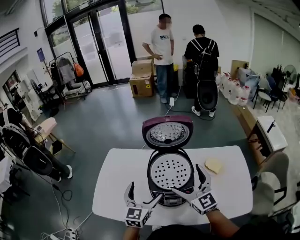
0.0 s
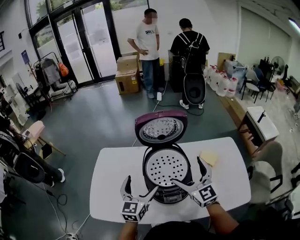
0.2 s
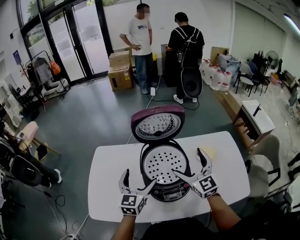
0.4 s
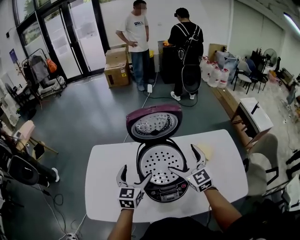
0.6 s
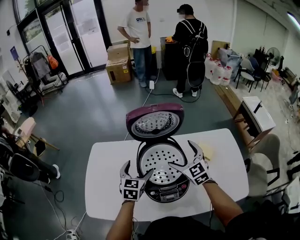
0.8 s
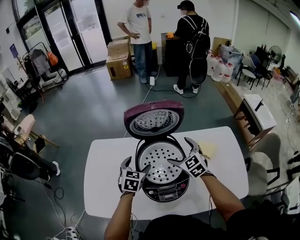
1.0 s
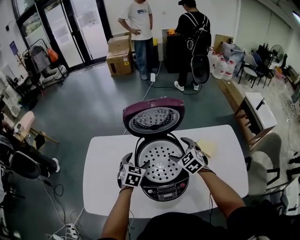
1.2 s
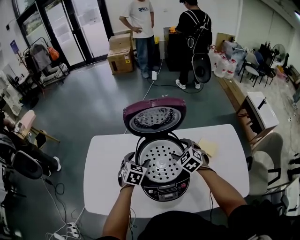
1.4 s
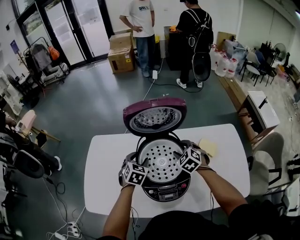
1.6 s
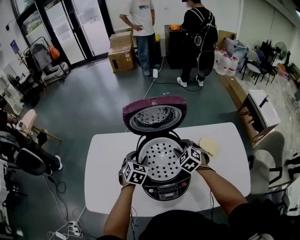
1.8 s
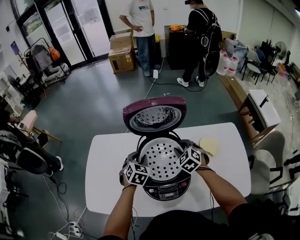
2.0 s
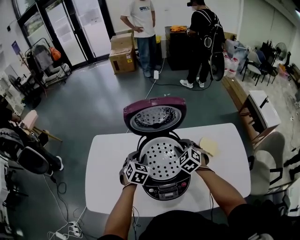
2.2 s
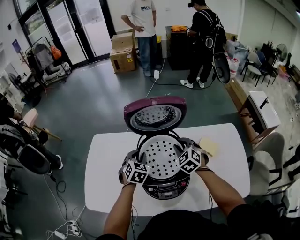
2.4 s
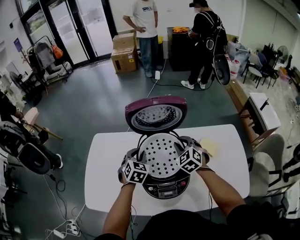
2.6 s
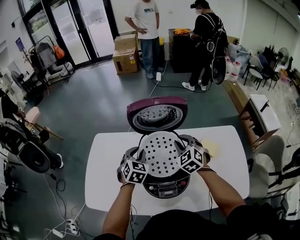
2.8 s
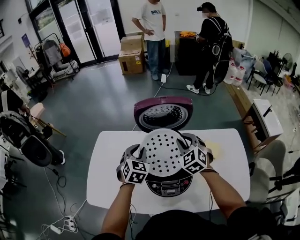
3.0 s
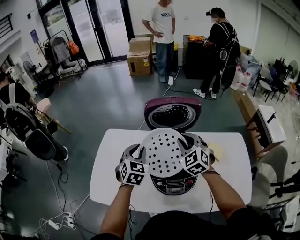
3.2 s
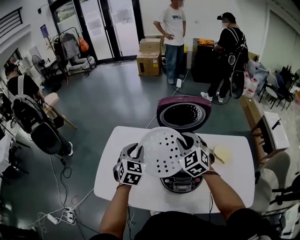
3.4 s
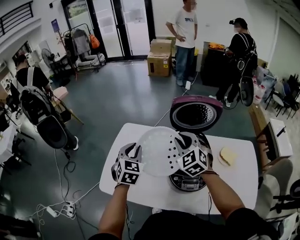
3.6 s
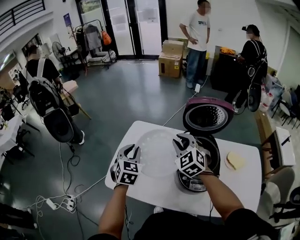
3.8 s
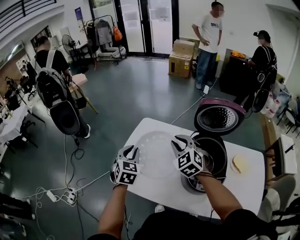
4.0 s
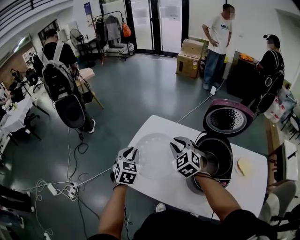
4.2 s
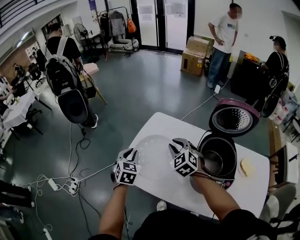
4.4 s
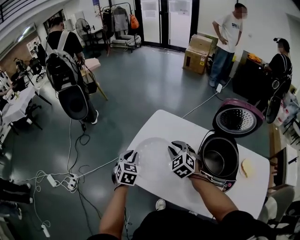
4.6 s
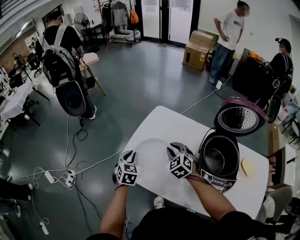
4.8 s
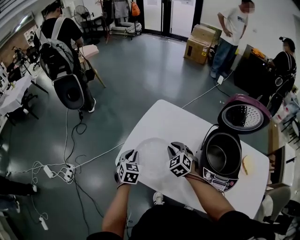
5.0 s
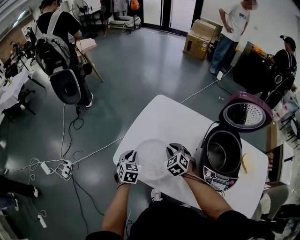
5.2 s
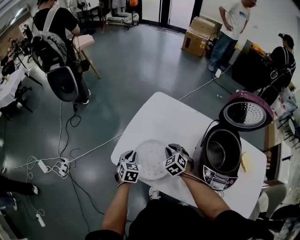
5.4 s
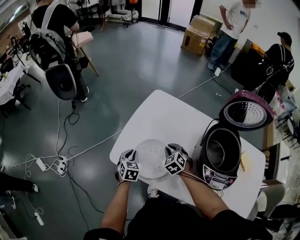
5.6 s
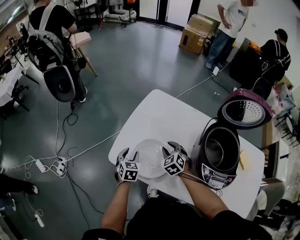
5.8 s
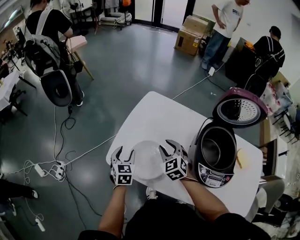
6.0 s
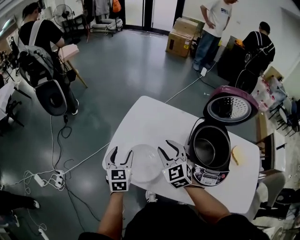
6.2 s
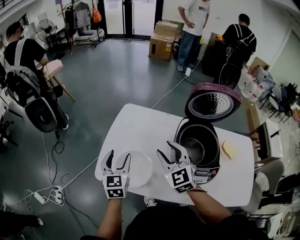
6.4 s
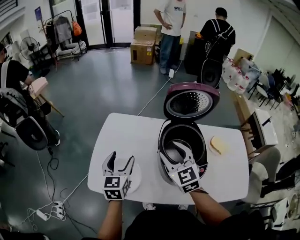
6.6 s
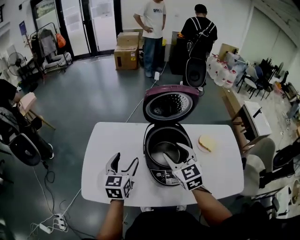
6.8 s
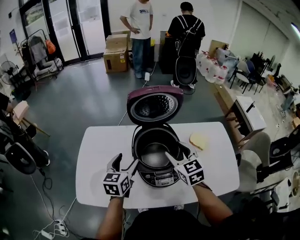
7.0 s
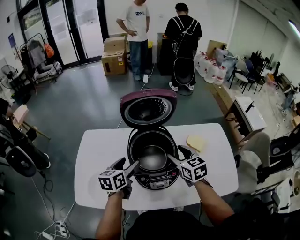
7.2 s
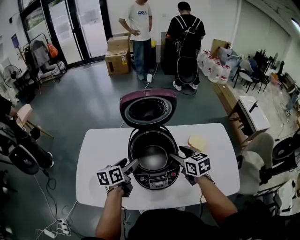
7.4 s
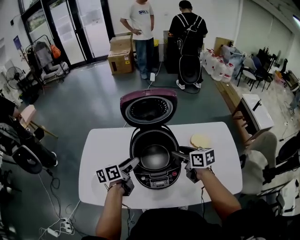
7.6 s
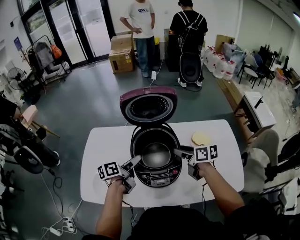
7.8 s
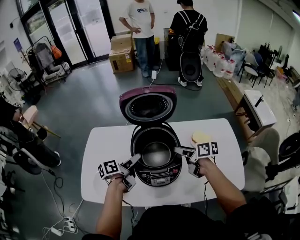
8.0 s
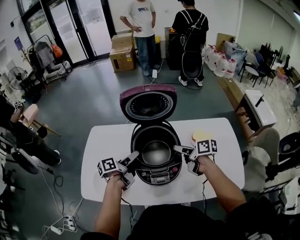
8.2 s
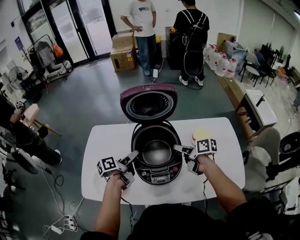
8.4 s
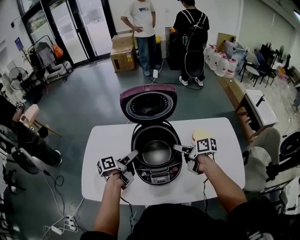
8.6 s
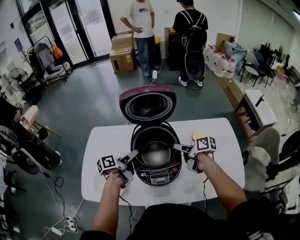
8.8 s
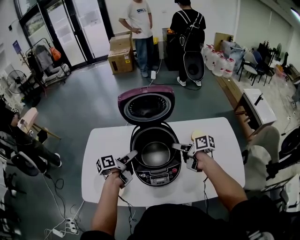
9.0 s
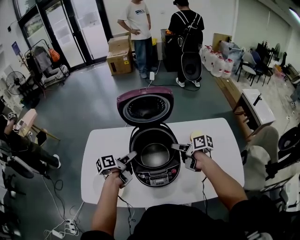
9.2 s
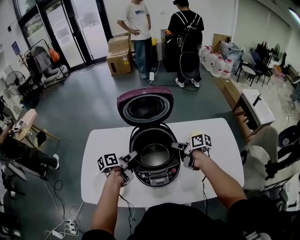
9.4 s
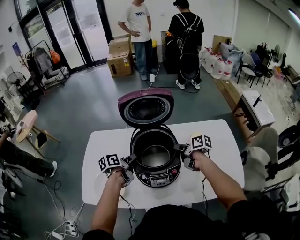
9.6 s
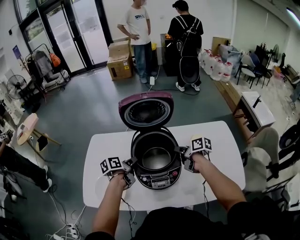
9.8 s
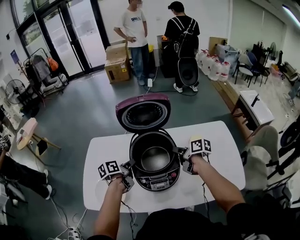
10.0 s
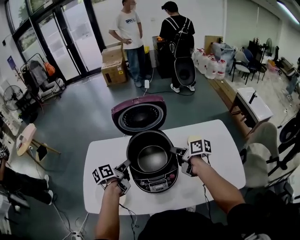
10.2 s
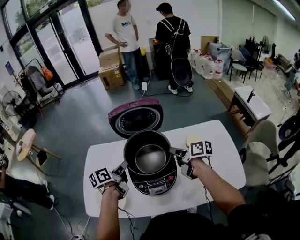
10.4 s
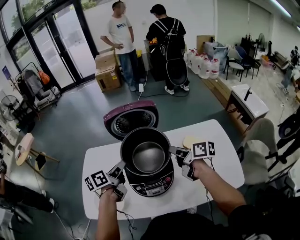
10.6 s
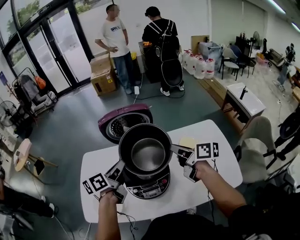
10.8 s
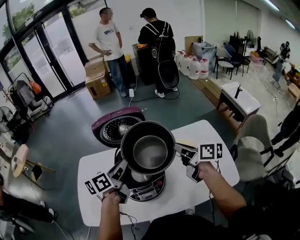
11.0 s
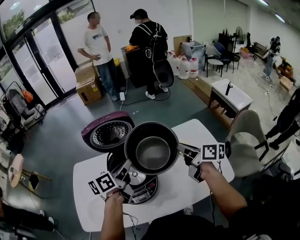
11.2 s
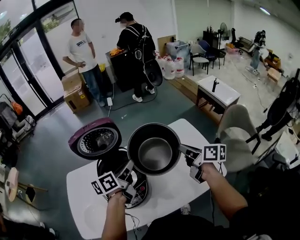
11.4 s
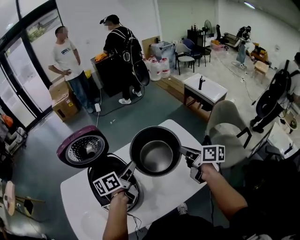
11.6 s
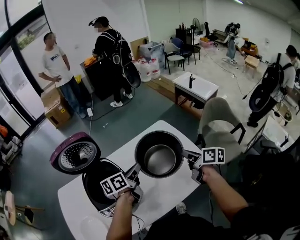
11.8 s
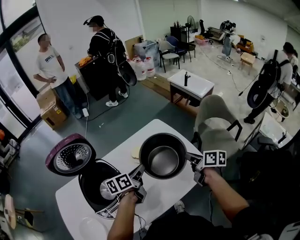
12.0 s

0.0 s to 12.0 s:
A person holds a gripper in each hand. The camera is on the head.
0.0 to 1.6 s: The left gripper shifts some 20 cm forward and downward, points its fingers approximately 30 degrees further downward, and closes its fingers. The right gripper travels downward and forward by some 25 cm, tips its fingers downward by approximately 50 degrees, and closes its fingers.
1.6 to 3.0 s: Both grippers travel together upward, approximately 10 cm.
3.0 to 4.4 s: The right gripper reaches approximately 5 cm upward, then returns, and turns by roughly 30 degrees; the left gripper travels upward and back again, approximately 5 cm each way, and turns by some 30 degrees.
4.4 to 6.0 s: The grippers both shift downward by approximately 15 cm.
6.0 to 7.6 s: The left gripper moves about 40 cm, and swivels approximately 60 degrees. The right gripper shifts by approximately 40 cm, and twists about 60 degrees clockwise, seen from behind.
7.6 to 9.0 s: The left gripper changes its angle by approximately 20 degrees. The right gripper turns by approximately 30 degrees.
9.0 to 10.4 s: Both grippers move upward, roughly 5 cm. The left gripper closes. The right gripper closes its fingers.
10.4 to 12.0 s: The left gripper reaches some 10 cm upward, then returns, and changes its angle by some 30 degrees. The right gripper travels upward and back again, about 10 cm each way, and changes its angle by about 40 degrees.

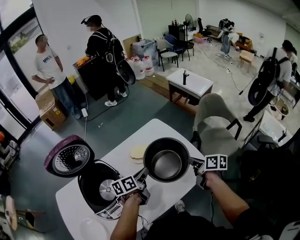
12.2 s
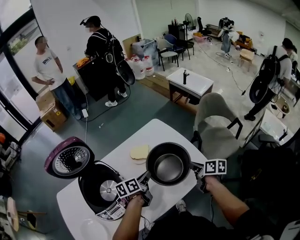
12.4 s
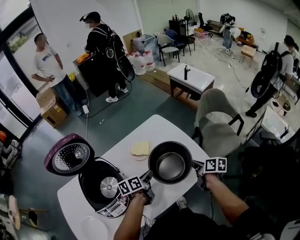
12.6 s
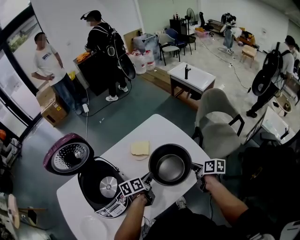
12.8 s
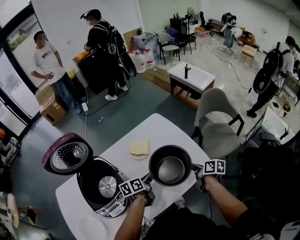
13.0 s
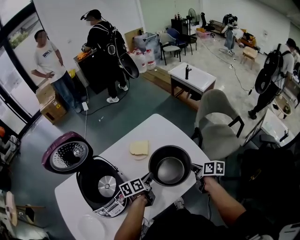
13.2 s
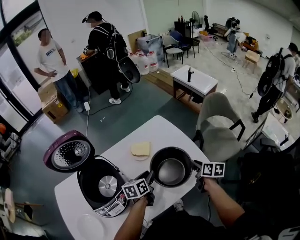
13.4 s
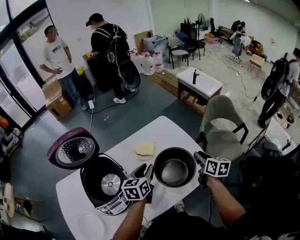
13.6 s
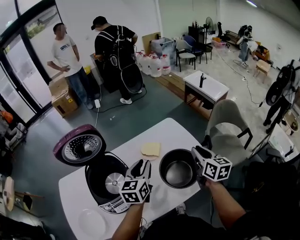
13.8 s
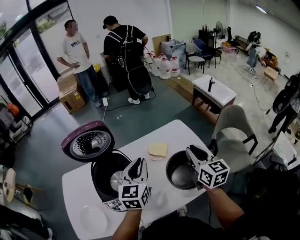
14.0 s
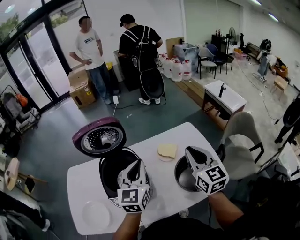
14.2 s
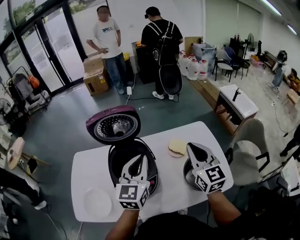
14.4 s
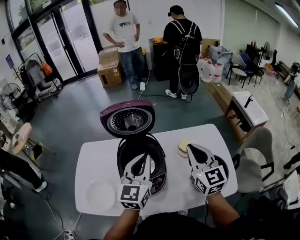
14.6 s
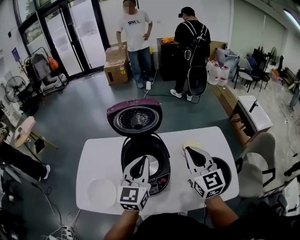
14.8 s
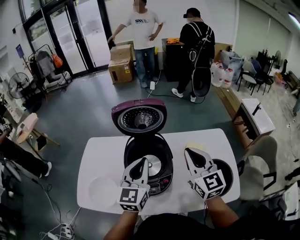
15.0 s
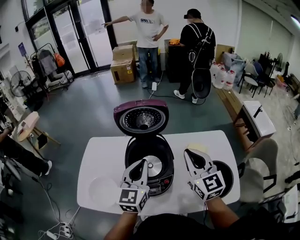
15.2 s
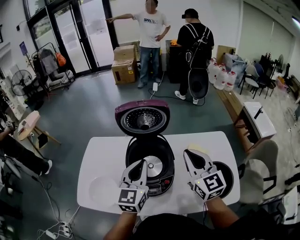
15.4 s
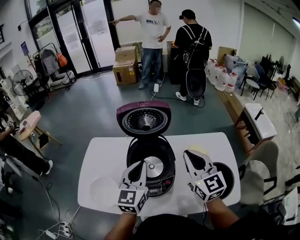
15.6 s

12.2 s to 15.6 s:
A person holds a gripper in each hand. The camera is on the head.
12.2 to 13.8 s: The grippers both shift upward by some 10 cm. The right gripper swivels about 30 degrees; the left gripper changes its angle by about 40 degrees.
13.8 to 15.6 s: The right gripper changes place by about 35 cm, and turns by about 50 degrees, while the left gripper moves roughly 25 cm, and rotates roughly 30 degrees.

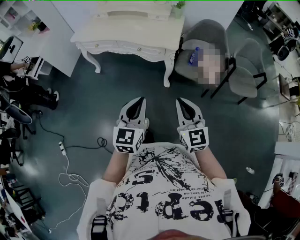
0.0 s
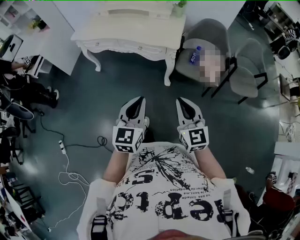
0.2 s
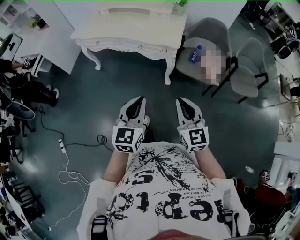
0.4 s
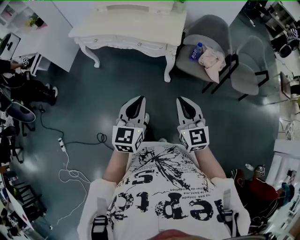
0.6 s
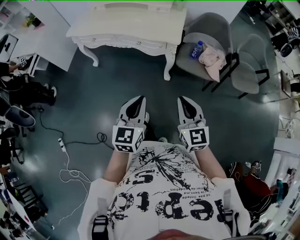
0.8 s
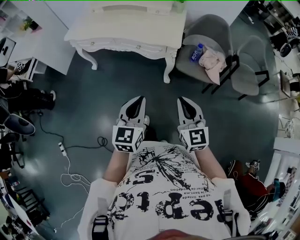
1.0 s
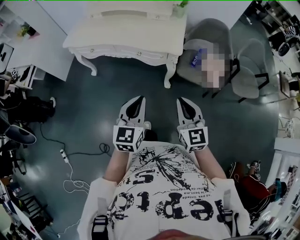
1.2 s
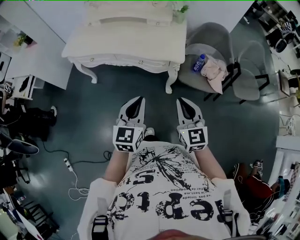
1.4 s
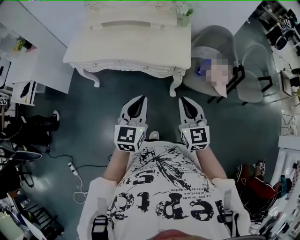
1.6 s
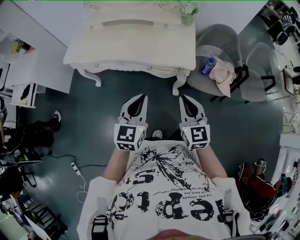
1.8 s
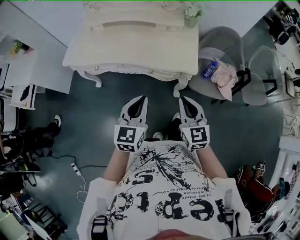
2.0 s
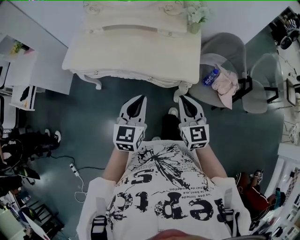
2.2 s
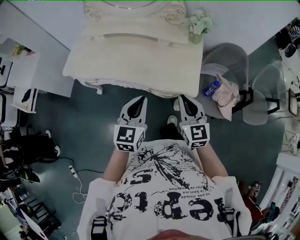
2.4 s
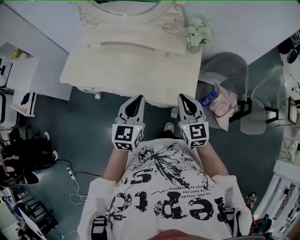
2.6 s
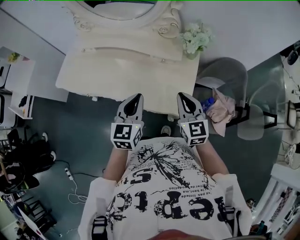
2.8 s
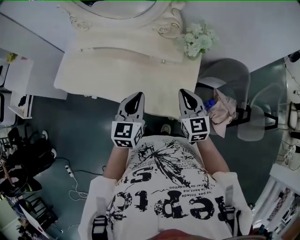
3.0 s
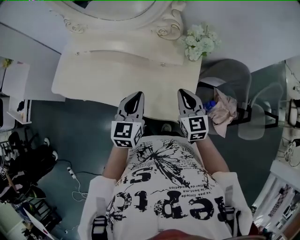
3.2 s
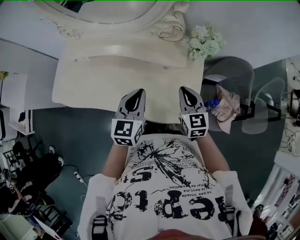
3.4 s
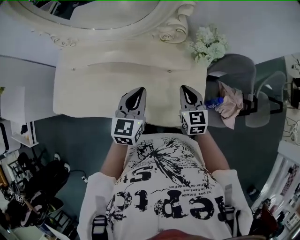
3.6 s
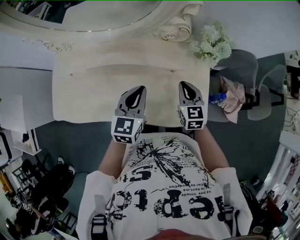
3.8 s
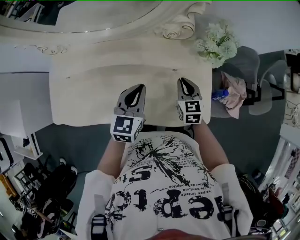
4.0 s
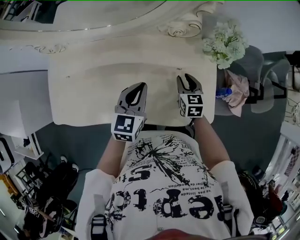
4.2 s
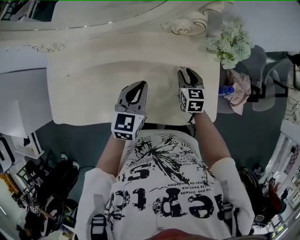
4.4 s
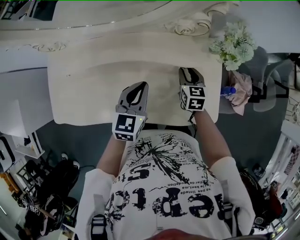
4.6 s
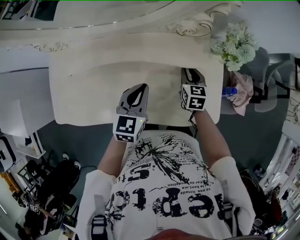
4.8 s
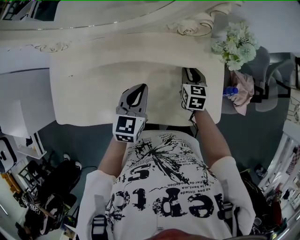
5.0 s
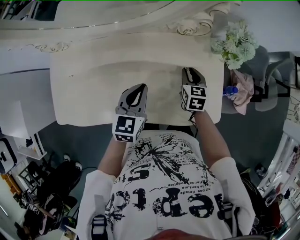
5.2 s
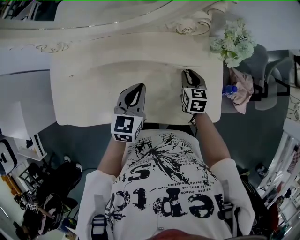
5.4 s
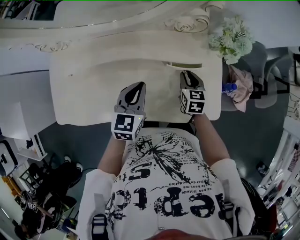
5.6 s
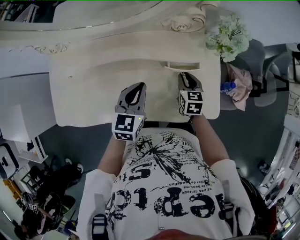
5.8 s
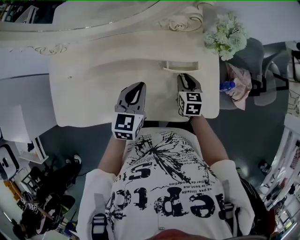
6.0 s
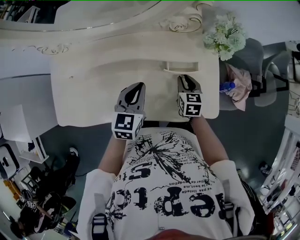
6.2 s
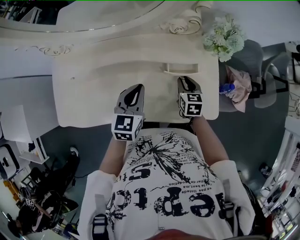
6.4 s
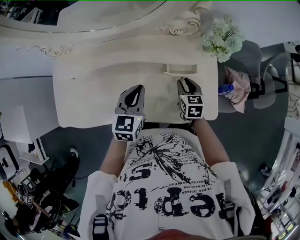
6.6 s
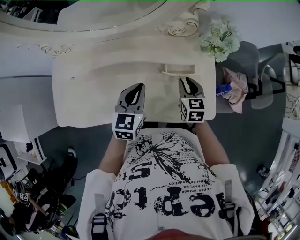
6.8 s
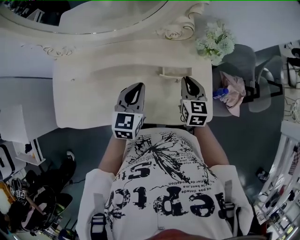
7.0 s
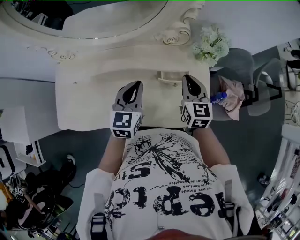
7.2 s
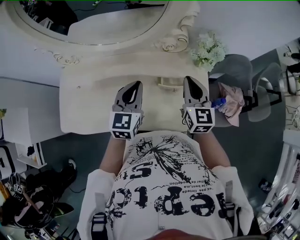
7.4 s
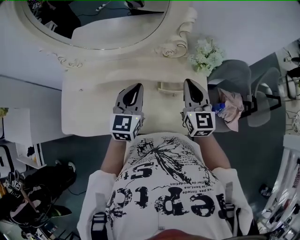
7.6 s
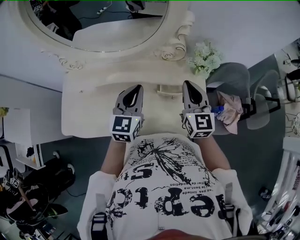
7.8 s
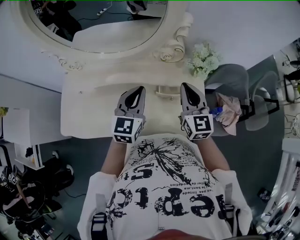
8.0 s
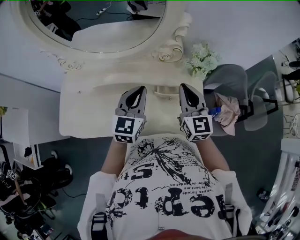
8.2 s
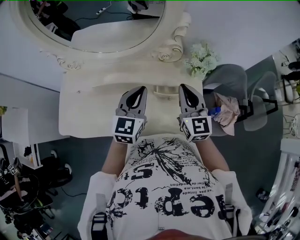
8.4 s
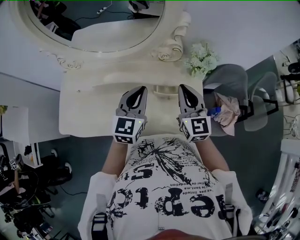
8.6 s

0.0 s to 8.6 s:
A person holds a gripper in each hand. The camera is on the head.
0.0 to 1.4 s: The right gripper is displaced forward by roughly 15 cm. Meanwhile the left gripper travels forward and to the left by approximately 20 cm.
1.4 to 2.8 s: Both grippers move forward, some 40 cm.
2.8 to 4.4 s: The right gripper is displaced forward and downward by about 30 cm, rotates about 30 degrees, and opens up; the left gripper travels forward, downward and to the left by approximately 25 cm, and changes its angle by roughly 20 degrees.
4.4 to 5.8 s: The grippers make only small movements.
5.8 to 7.2 s: The left gripper is displaced upward by some 5 cm; the right gripper goes roughly 15 cm upward, and swivels roughly 20 degrees.
7.2 to 8.6 s: The two grippers go approximately 5 cm upward.
